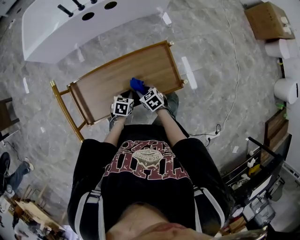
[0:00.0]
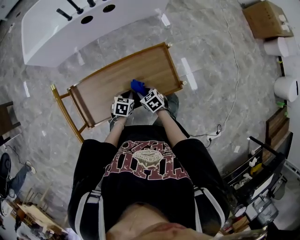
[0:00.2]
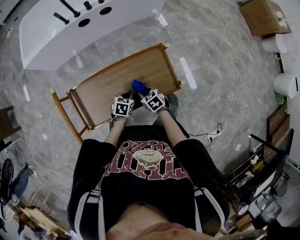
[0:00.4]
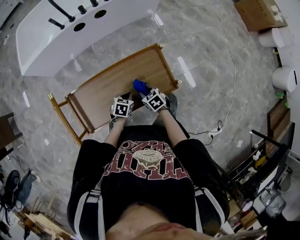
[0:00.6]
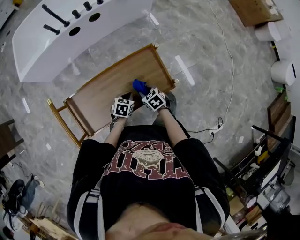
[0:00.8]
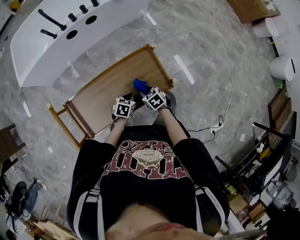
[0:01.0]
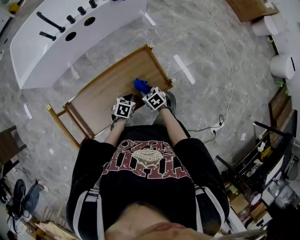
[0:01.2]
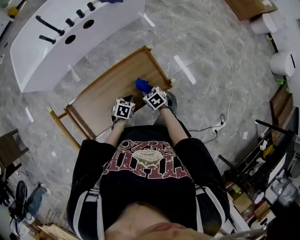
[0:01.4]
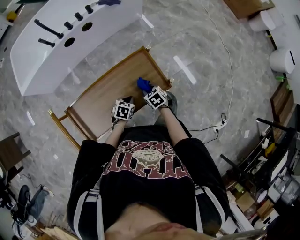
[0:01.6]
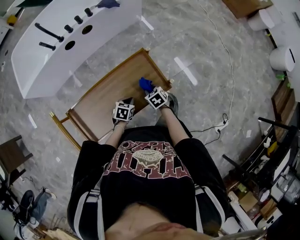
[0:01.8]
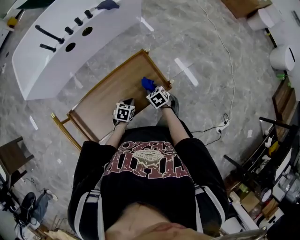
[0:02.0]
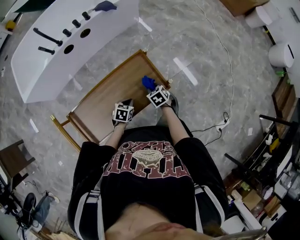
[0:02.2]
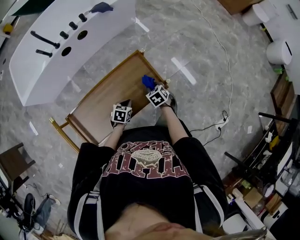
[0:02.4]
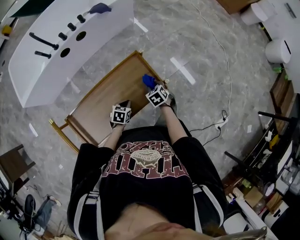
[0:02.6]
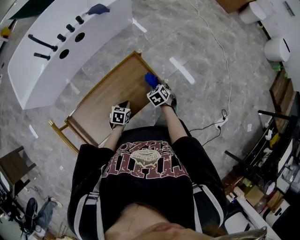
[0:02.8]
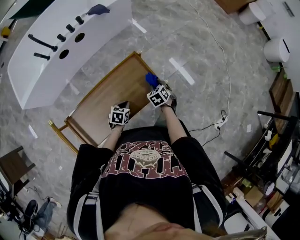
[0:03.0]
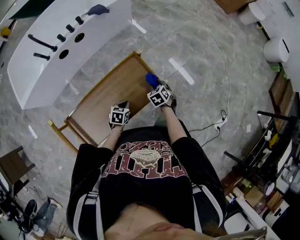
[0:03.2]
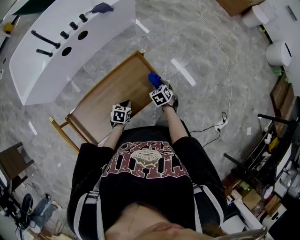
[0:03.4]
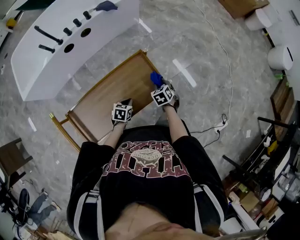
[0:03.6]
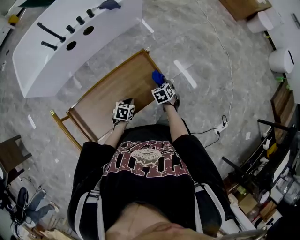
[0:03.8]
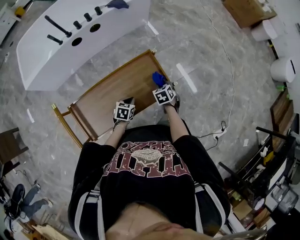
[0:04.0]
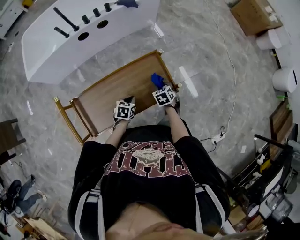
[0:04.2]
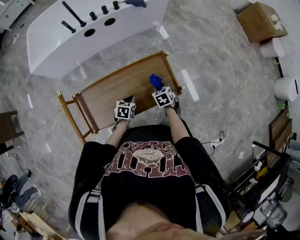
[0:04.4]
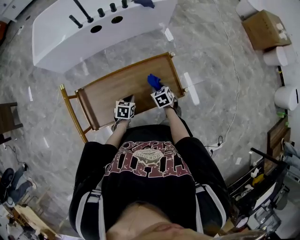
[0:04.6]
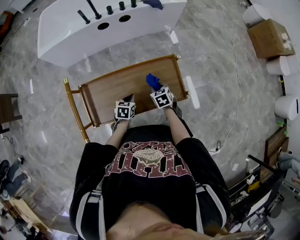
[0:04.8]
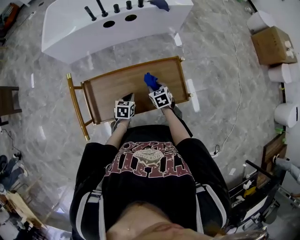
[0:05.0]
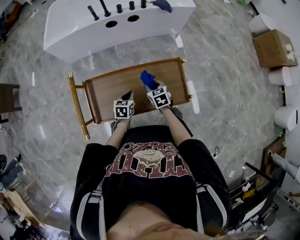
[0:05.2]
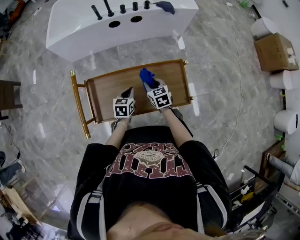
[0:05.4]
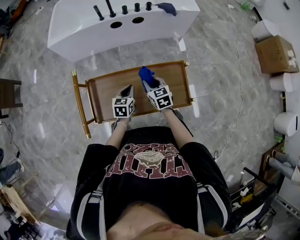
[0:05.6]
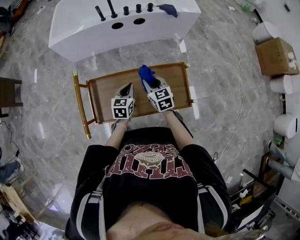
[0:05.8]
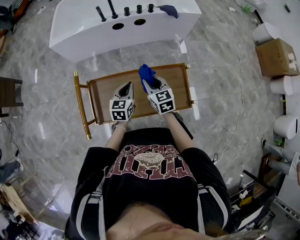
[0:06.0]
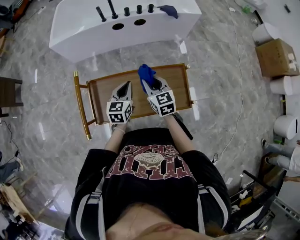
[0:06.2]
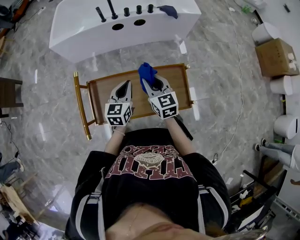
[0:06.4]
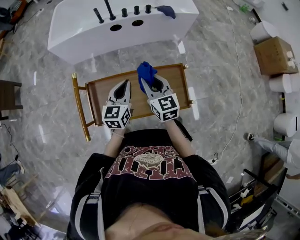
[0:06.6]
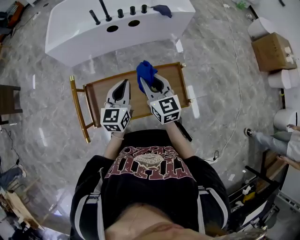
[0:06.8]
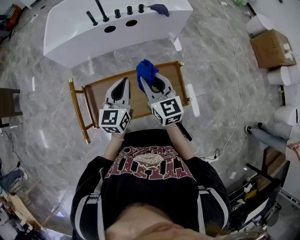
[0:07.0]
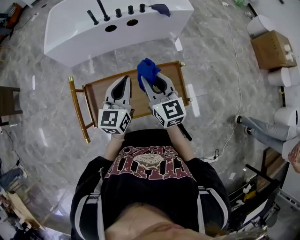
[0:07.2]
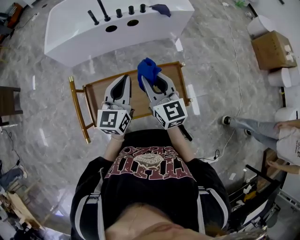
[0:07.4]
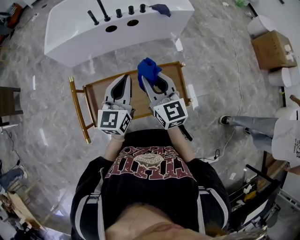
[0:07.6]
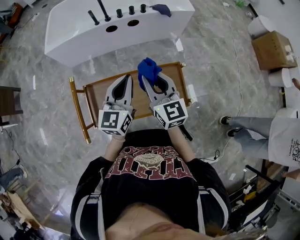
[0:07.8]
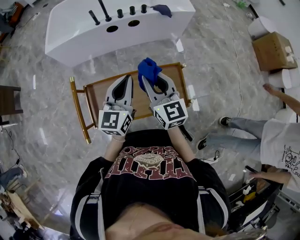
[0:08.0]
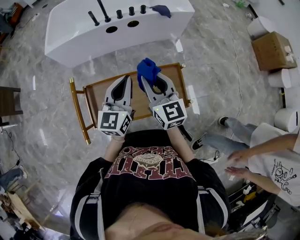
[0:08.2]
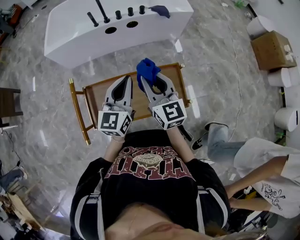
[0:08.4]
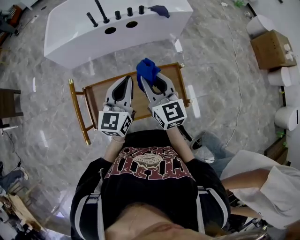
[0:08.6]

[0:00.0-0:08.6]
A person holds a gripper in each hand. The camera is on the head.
0:00.0 to 0:01.4: The grippers both shift to the right by about 10 cm.
0:01.4 to 0:02.8: The right gripper is displaced to the right by some 10 cm, and turns by some 20 degrees.
0:02.8 to 0:04.4: The left gripper heads to the left, covering roughly 5 cm. Meanwhile the right gripper is displaced to the left by some 10 cm.
0:04.4 to 0:05.8: The right gripper shifts by roughly 25 cm, and rotates some 30 degrees, while the left gripper moves upward, some 15 cm, and swivels approximately 30 degrees.
0:05.8 to 0:07.2: Both grippers move upward, some 20 cm. The left gripper turns by approximately 30 degrees, while the right gripper turns by some 20 degrees.
0:07.2 to 0:08.6: The grippers stay close to where they were, moving slightly.

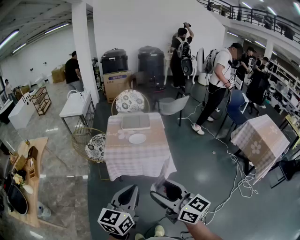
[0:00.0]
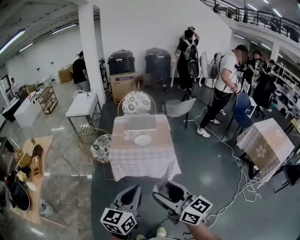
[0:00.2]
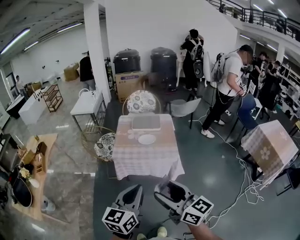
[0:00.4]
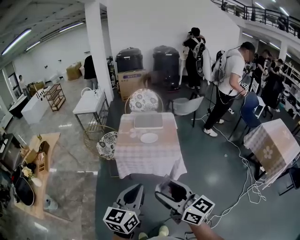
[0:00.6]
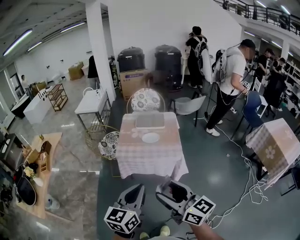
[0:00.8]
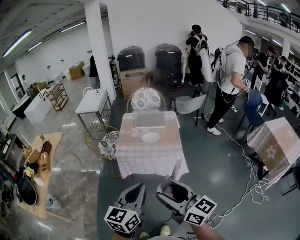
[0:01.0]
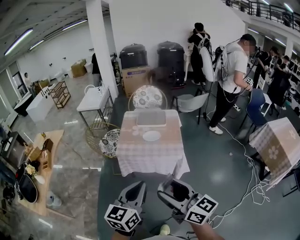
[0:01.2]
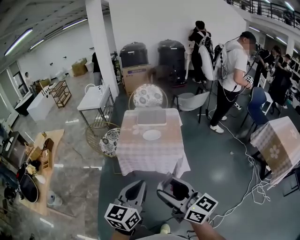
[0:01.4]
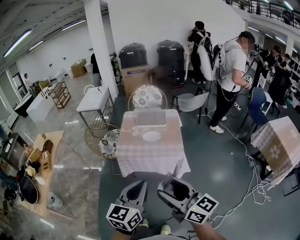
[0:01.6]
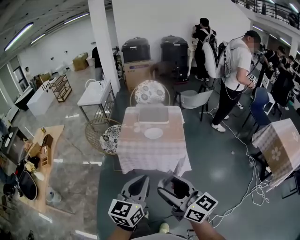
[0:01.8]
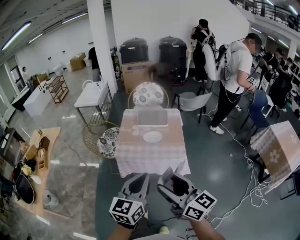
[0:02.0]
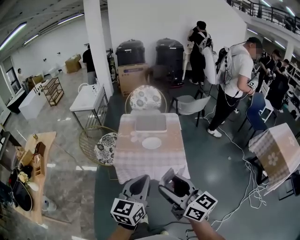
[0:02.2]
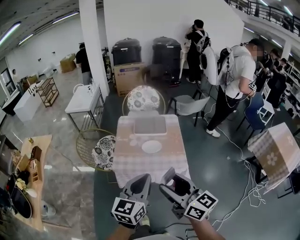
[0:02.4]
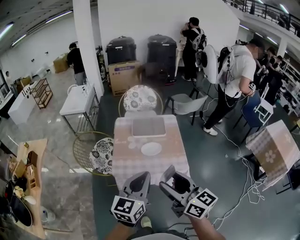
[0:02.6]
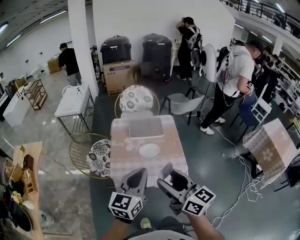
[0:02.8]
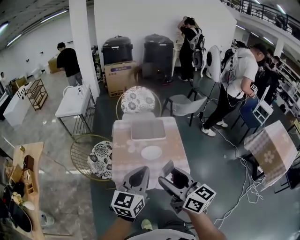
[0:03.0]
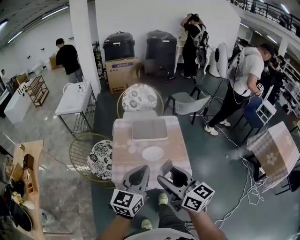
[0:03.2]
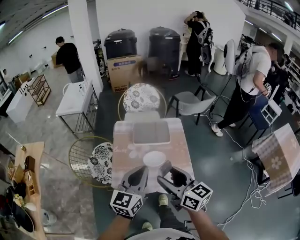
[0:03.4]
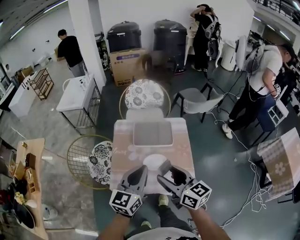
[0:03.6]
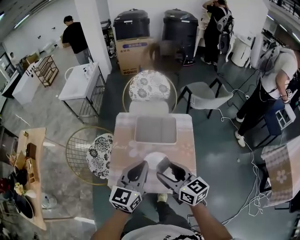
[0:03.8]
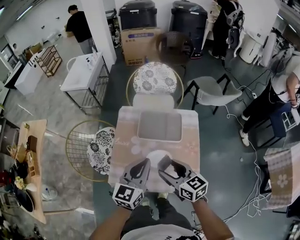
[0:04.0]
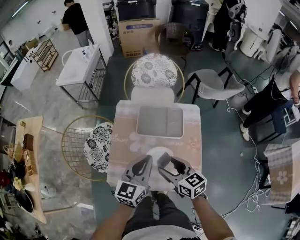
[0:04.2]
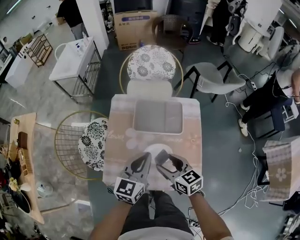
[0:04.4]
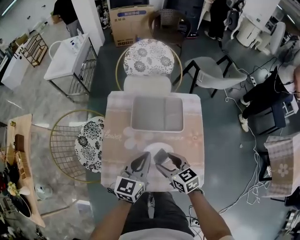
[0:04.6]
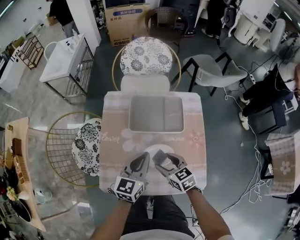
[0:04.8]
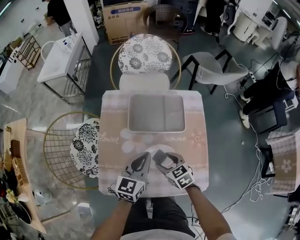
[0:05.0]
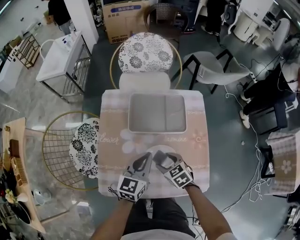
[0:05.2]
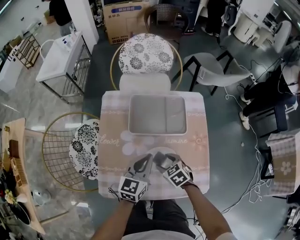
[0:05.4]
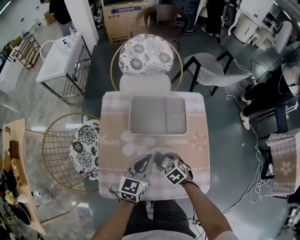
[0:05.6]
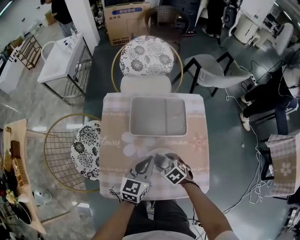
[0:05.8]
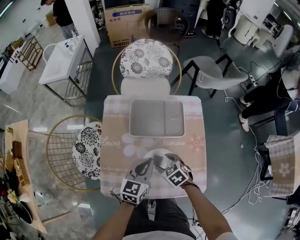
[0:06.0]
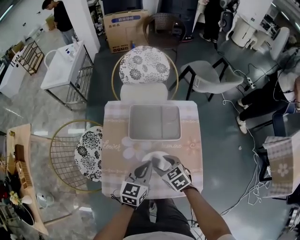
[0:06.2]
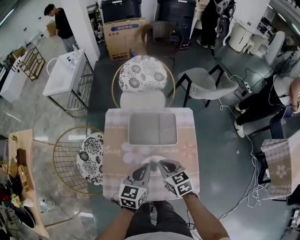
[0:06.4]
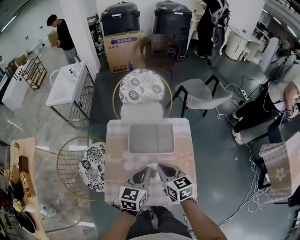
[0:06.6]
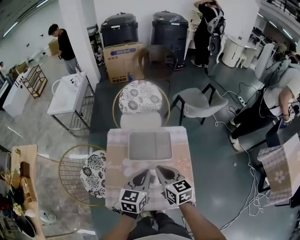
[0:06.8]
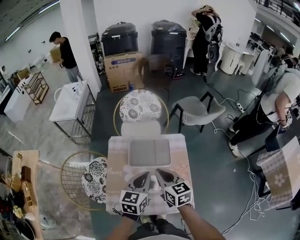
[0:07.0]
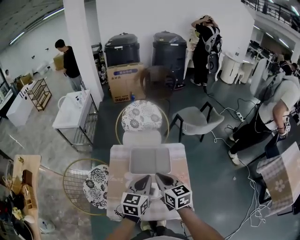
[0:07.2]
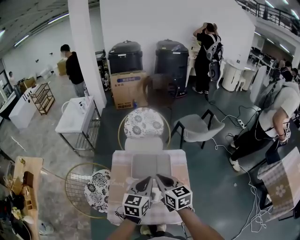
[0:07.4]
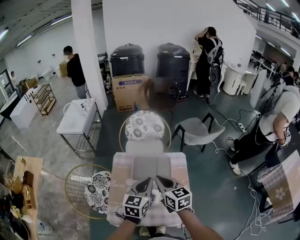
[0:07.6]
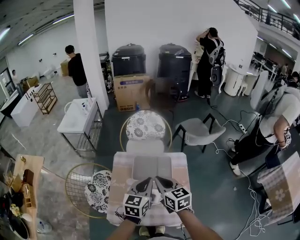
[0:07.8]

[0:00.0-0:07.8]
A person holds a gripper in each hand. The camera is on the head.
0:00.0 to 0:01.6: The left gripper moves roughly 5 cm.
0:01.6 to 0:03.2: The grippers both shift forward by about 30 cm.
0:03.2 to 0:04.6: Both grippers move downward and forward, roughly 35 cm. The right gripper points its fingers approximately 30 degrees further downward.
0:04.6 to 0:06.2: The right gripper travels downward and back again, approximately 15 cm each way.
0:06.2 to 0:07.8: Both grippers travel together upward, approximately 25 cm. The right gripper tilts its fingers some 30 degrees upward, and closes.

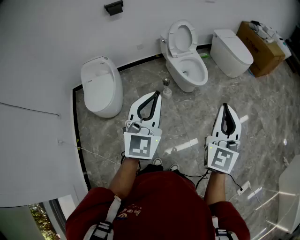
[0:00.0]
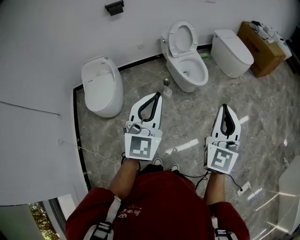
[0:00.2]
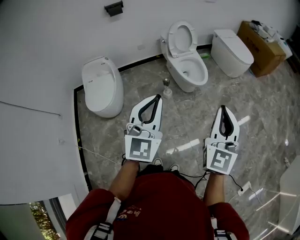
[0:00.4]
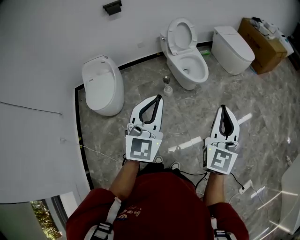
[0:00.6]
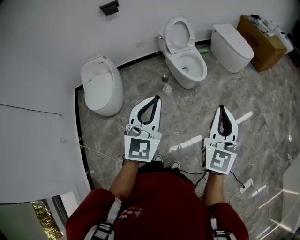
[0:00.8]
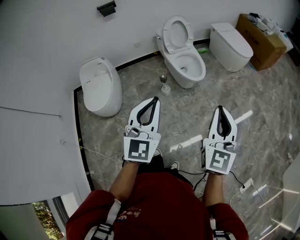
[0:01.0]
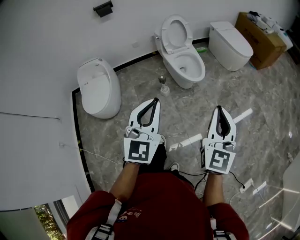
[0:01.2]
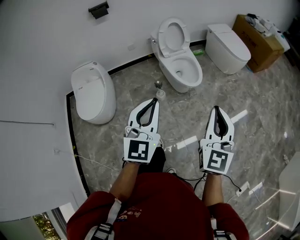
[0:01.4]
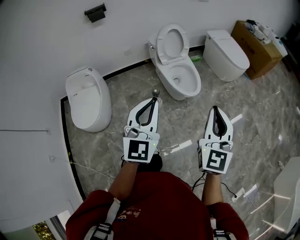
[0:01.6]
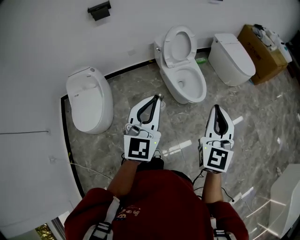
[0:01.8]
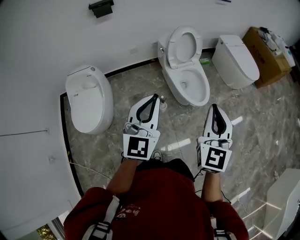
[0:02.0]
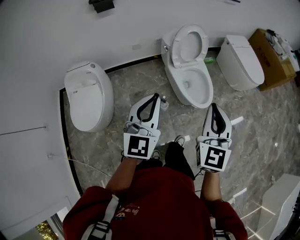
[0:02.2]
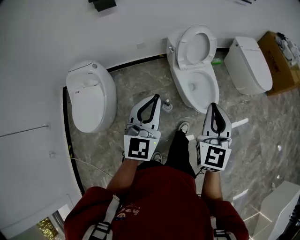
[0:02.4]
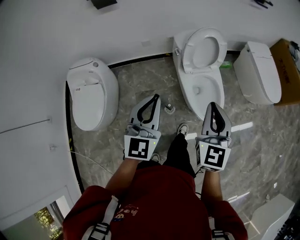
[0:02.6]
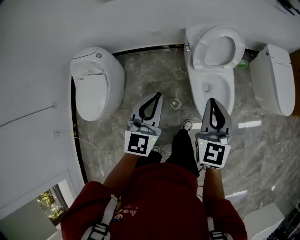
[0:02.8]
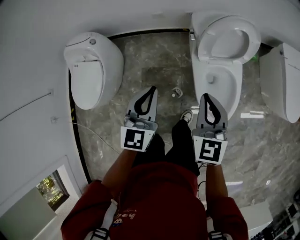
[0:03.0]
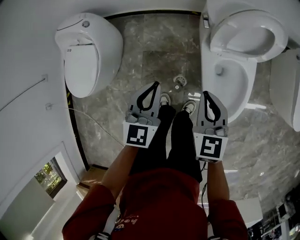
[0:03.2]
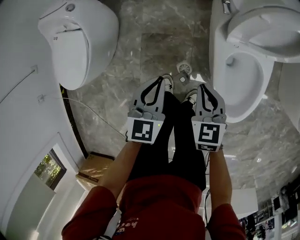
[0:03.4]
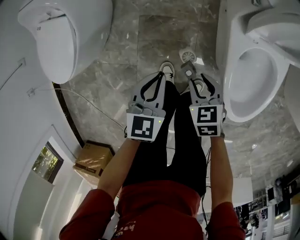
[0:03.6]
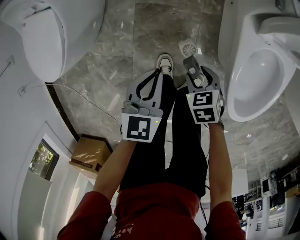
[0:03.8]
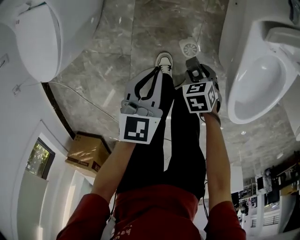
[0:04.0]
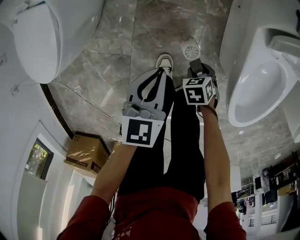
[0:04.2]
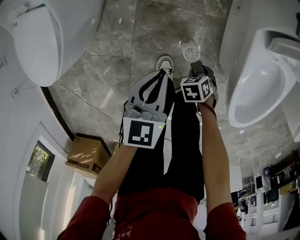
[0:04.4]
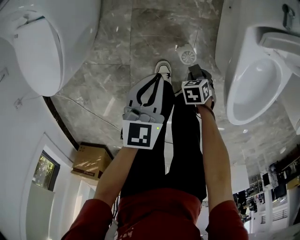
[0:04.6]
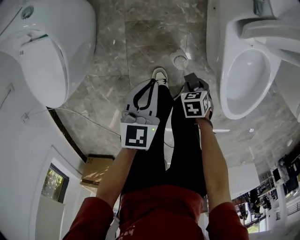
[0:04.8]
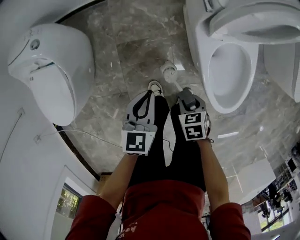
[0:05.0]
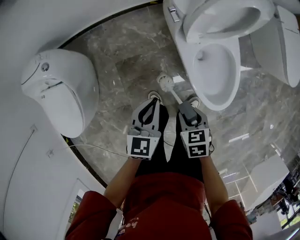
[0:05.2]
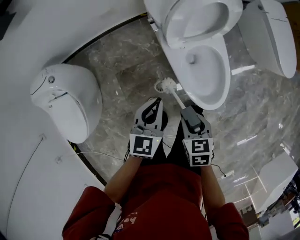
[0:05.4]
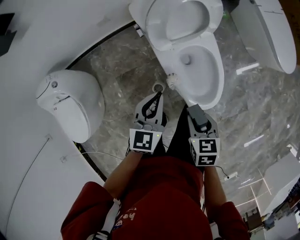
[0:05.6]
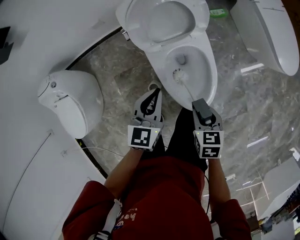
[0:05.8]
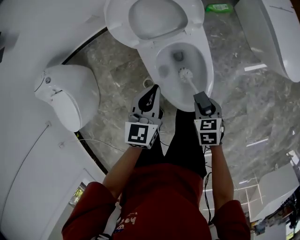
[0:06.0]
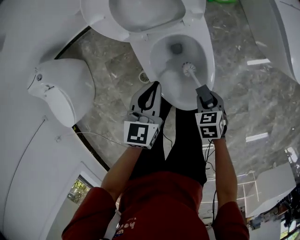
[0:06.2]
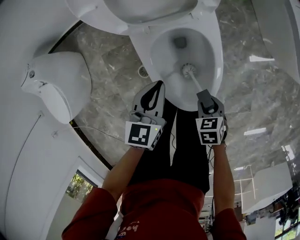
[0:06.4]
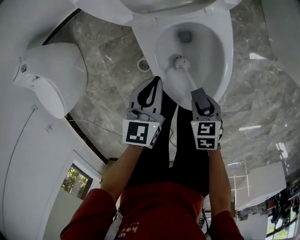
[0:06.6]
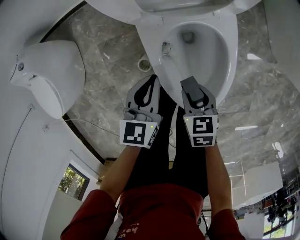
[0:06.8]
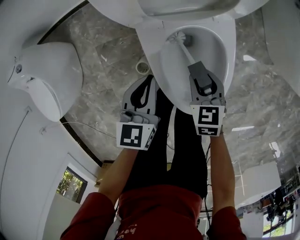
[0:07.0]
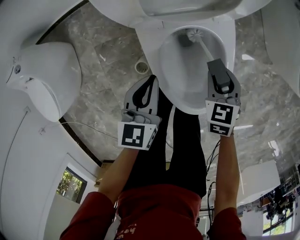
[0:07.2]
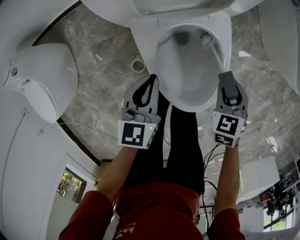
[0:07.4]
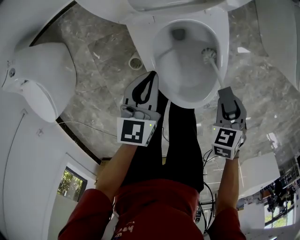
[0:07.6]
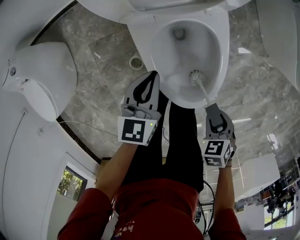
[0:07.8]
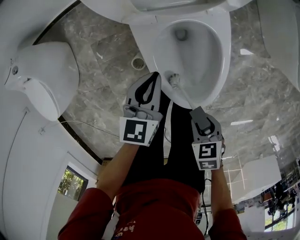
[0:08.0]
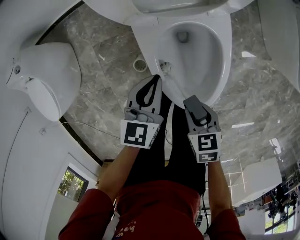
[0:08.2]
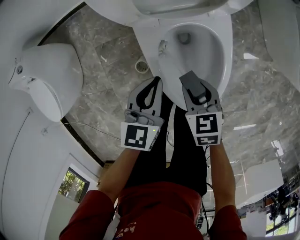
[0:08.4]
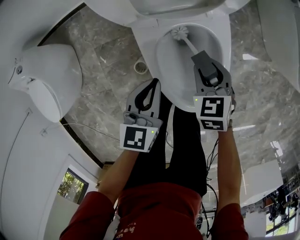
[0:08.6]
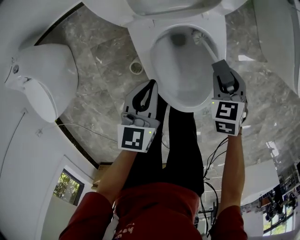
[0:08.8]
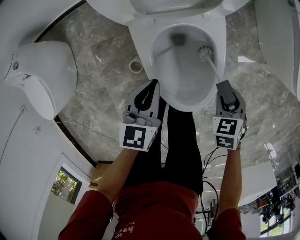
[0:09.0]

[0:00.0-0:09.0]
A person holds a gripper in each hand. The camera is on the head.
0:00.0 to 0:01.6: Both grippers move forward, about 15 cm.
0:01.6 to 0:03.0: Both grippers are carried about 50 cm. The left gripper rotates about 30 degrees. The right gripper rotates approximately 40 degrees.
0:03.0 to 0:04.4: The right gripper shifts approximately 60 cm downward, points its fingers about 60 degrees further downward, and opens its fingers. The left gripper shifts approximately 40 cm downward, and swivels approximately 30 degrees.
0:04.4 to 0:06.0: The left gripper changes place by some 40 cm, and turns by some 30 degrees. Meanwhile the right gripper ends up approximately 50 cm from where it was, and rotates approximately 40 degrees.
0:06.0 to 0:07.6: The right gripper rotates some 20 degrees. The left gripper is displaced downward by some 15 cm.
